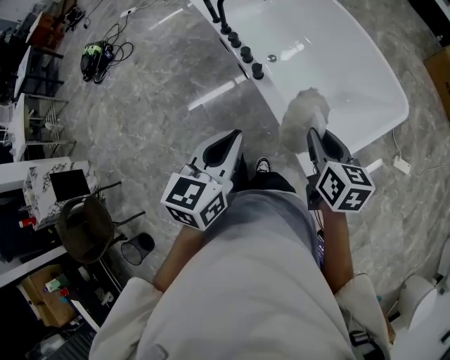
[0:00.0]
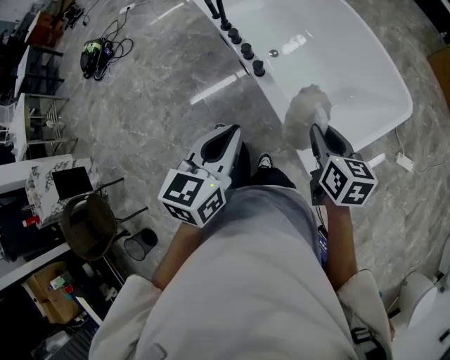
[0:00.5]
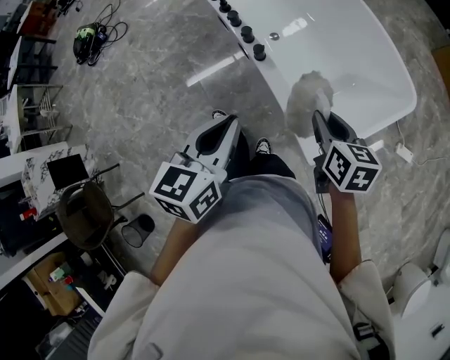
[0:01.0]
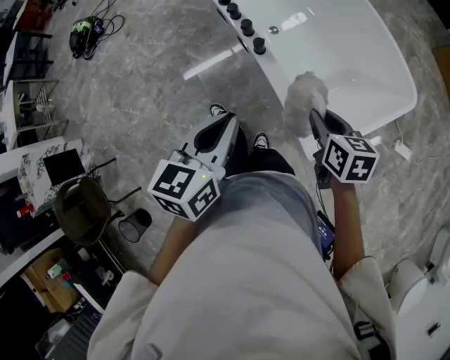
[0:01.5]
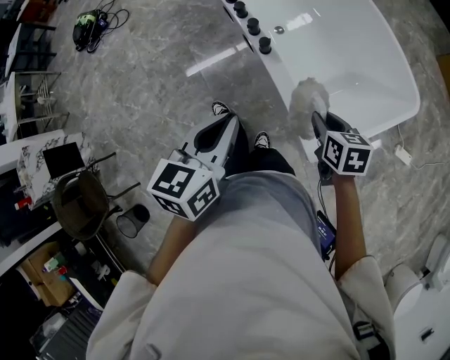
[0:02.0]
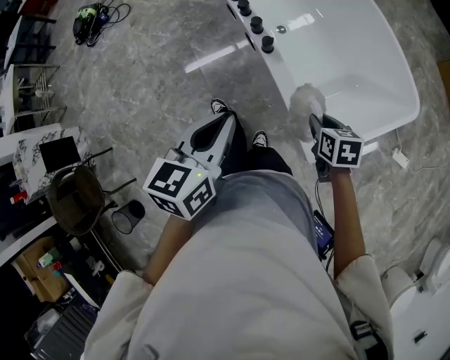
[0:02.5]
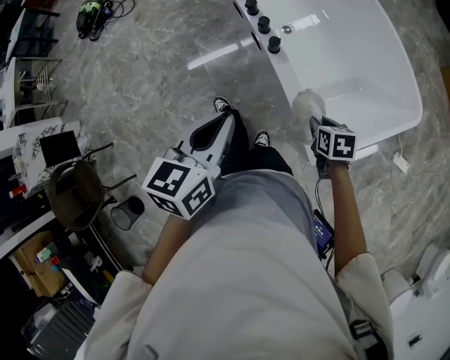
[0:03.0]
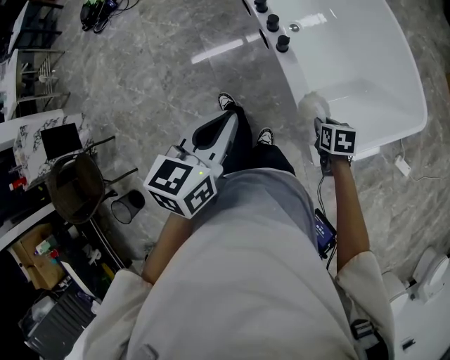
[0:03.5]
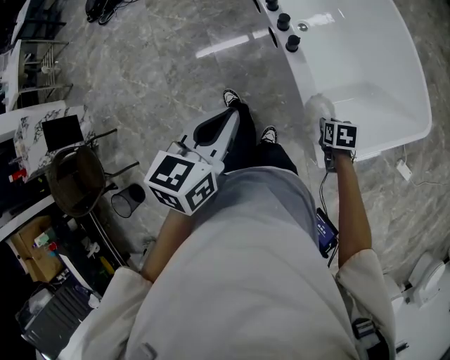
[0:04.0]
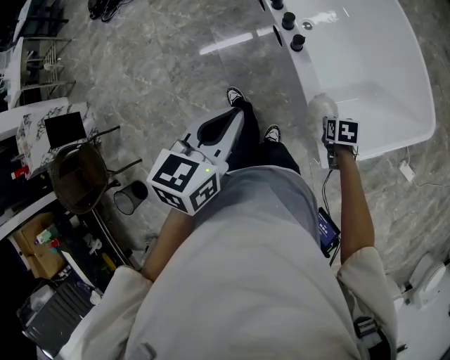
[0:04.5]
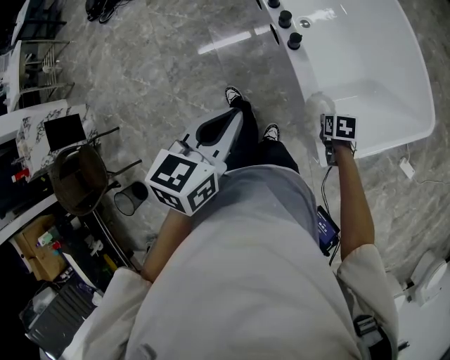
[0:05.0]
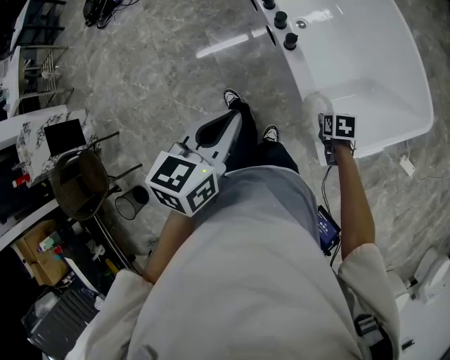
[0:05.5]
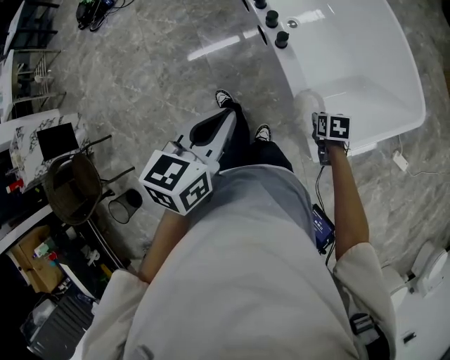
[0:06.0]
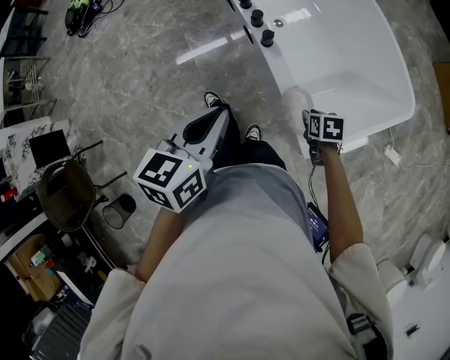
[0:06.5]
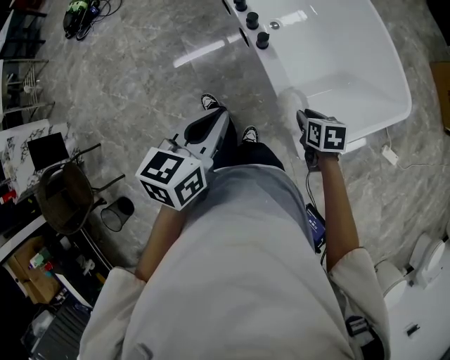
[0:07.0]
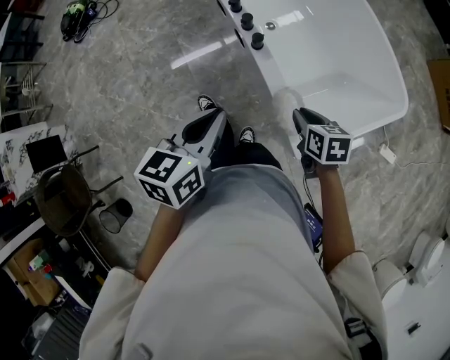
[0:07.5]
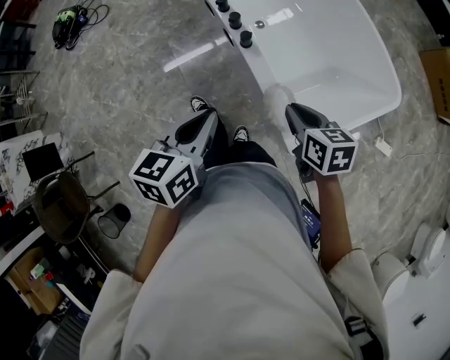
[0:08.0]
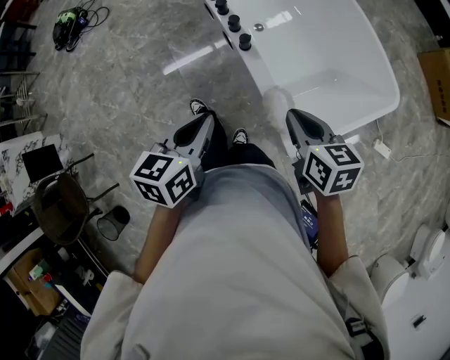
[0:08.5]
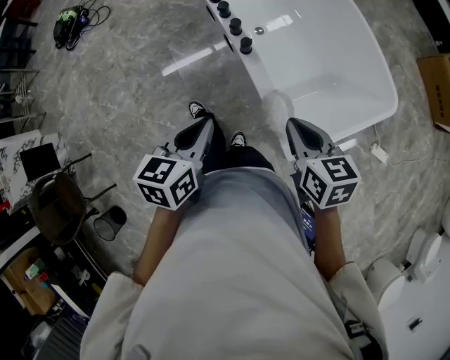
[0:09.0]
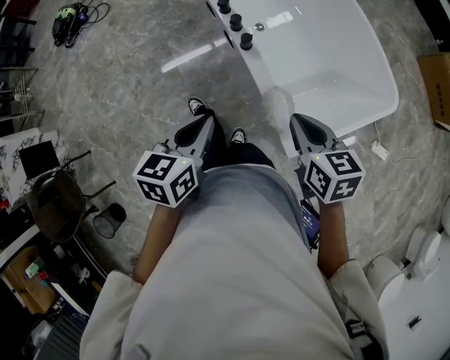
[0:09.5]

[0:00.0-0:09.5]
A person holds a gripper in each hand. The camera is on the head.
0:00.0 to 0:02.0: The right gripper shifts approximately 10 cm downward, and turns by about 20 degrees.
0:02.0 to 0:04.0: The right gripper shifts some 15 cm downward, and swivels roughly 20 degrees, while the left gripper is displaced to the left by roughly 5 cm.
0:04.0 to 0:05.5: There are only small adjustments of the grippers.
0:05.5 to 0:07.5: The right gripper shifts about 15 cm upward, and rotates about 20 degrees.
0:07.5 to 0:09.5: The right gripper travels upward by roughly 10 cm.

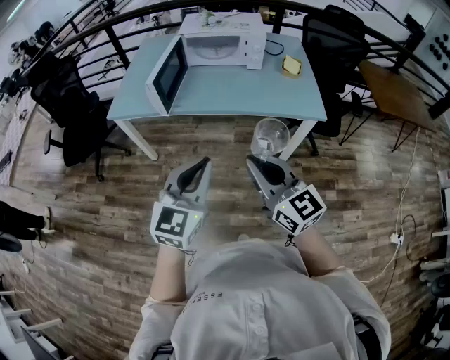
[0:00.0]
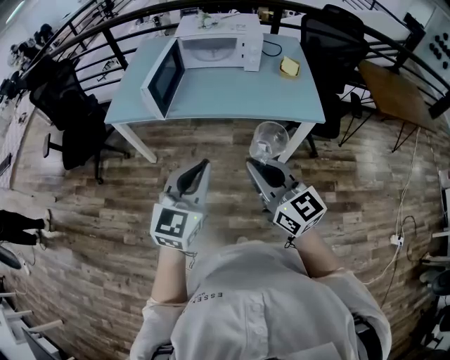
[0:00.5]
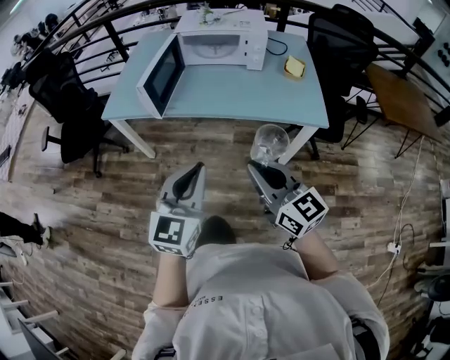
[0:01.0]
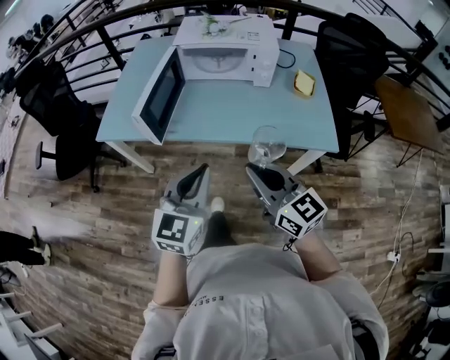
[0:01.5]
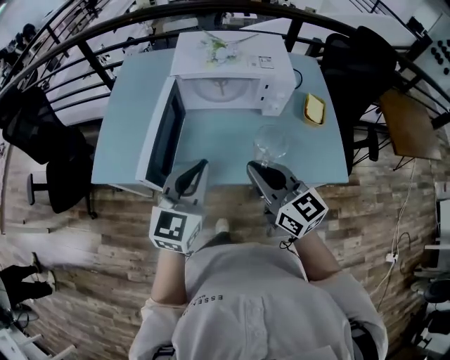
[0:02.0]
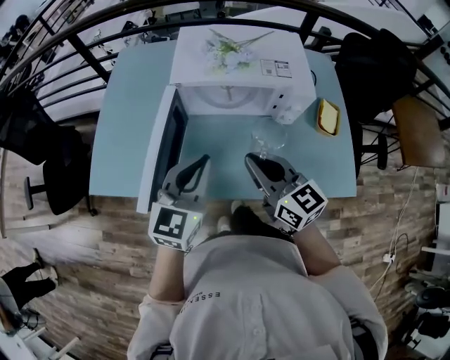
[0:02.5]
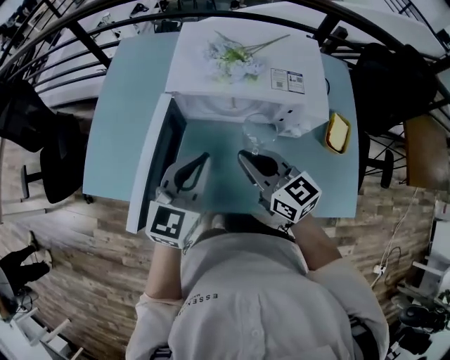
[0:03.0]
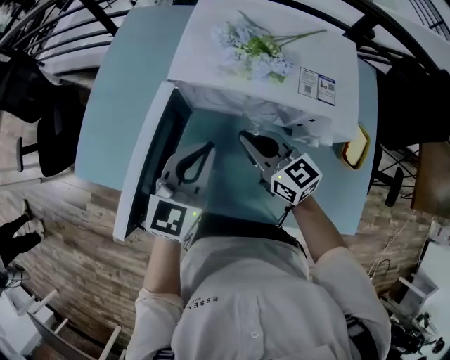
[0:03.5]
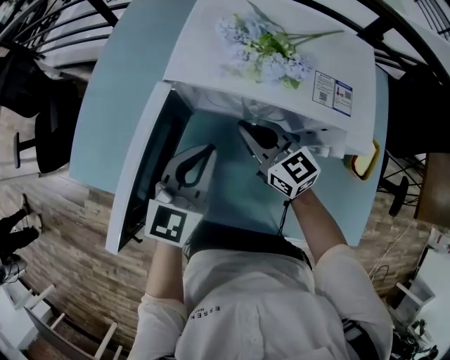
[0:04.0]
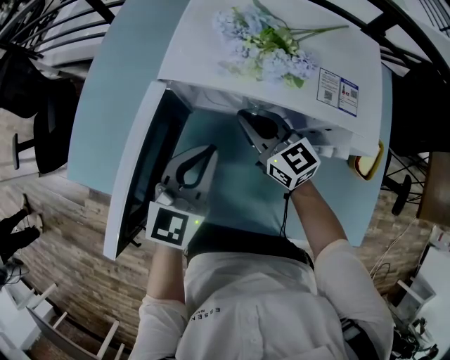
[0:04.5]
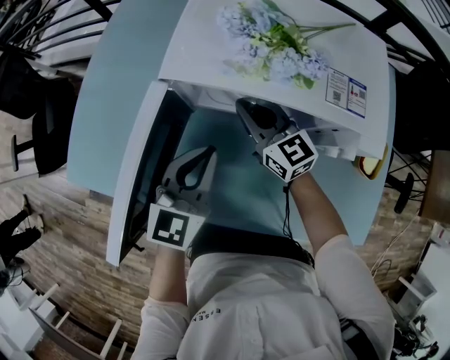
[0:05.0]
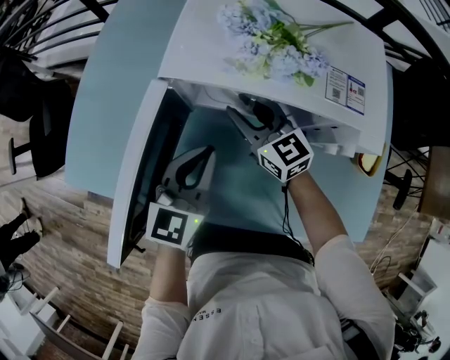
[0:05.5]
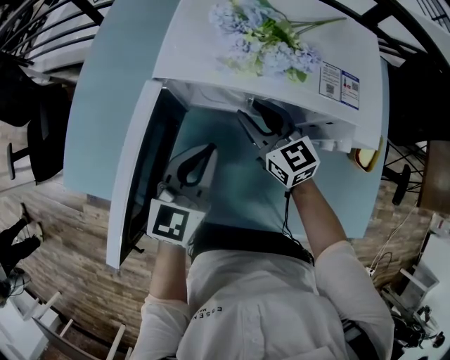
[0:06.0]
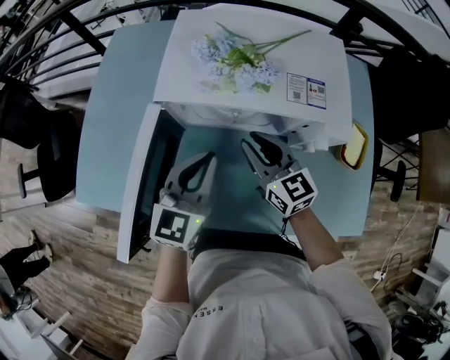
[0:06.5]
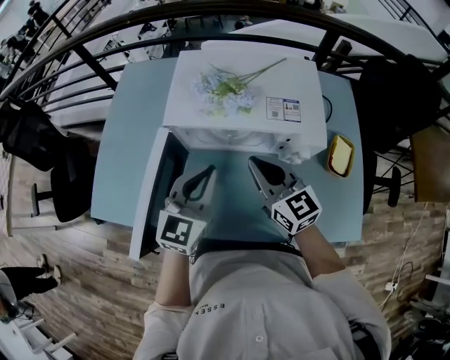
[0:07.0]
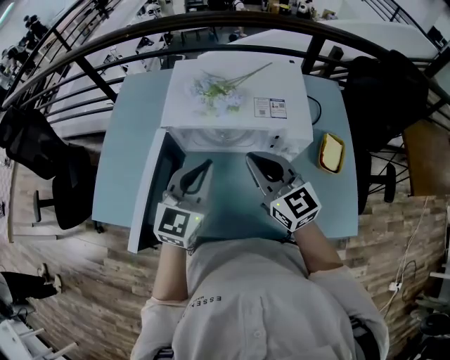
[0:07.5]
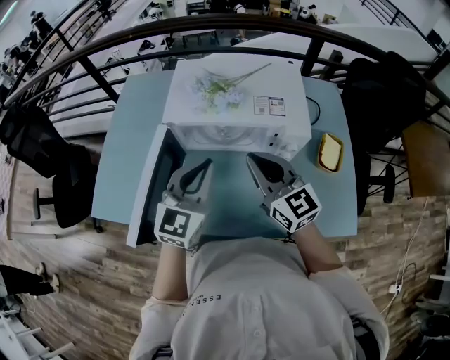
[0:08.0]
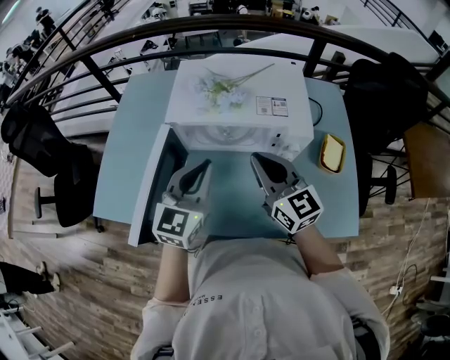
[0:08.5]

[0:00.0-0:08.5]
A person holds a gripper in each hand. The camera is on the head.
0:00.0 to 0:02.0: Both grippers move forward, roughly 40 cm.
0:02.0 to 0:04.0: The grippers both shift forward and downward by some 30 cm.
0:04.0 to 0:06.5: The right gripper goes forward and returns, about 5 cm each way, and opens its fingers.
0:06.5 to 0:08.5: The right gripper travels upward and backward by about 15 cm, and closes. Meanwhile the left gripper moves upward, about 10 cm.

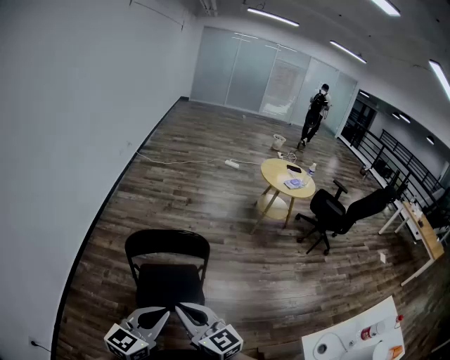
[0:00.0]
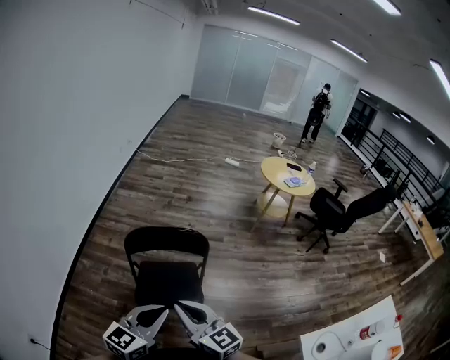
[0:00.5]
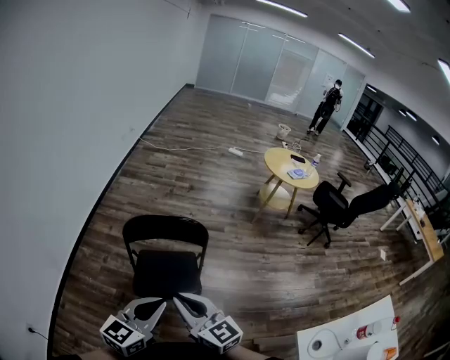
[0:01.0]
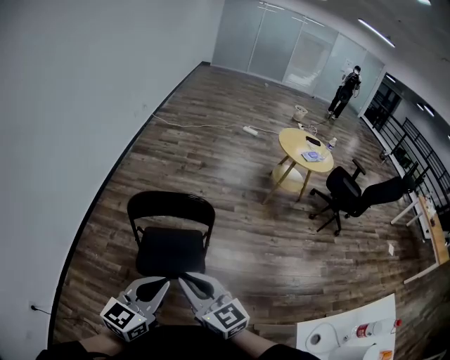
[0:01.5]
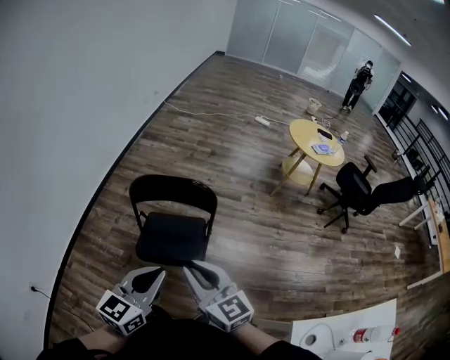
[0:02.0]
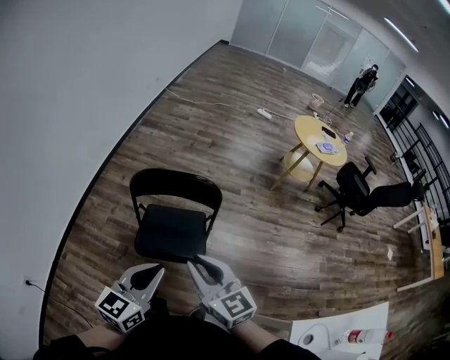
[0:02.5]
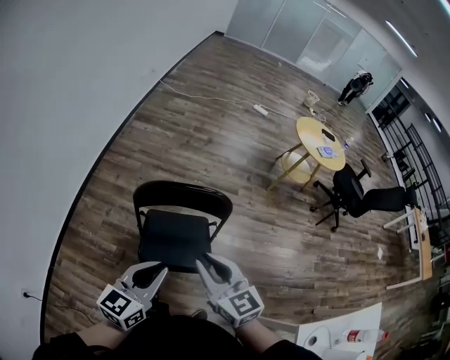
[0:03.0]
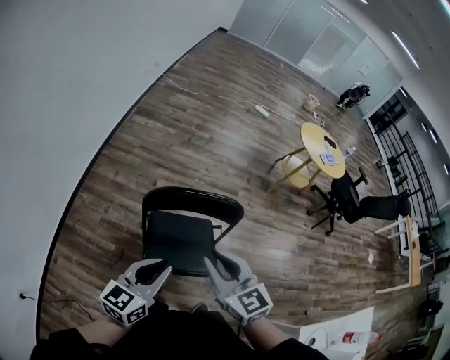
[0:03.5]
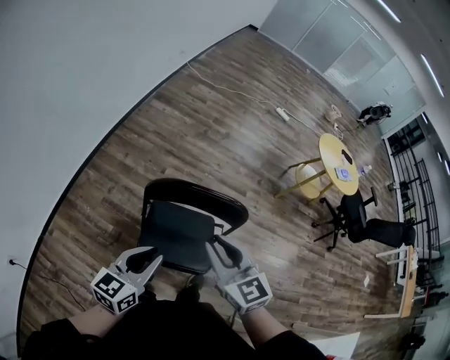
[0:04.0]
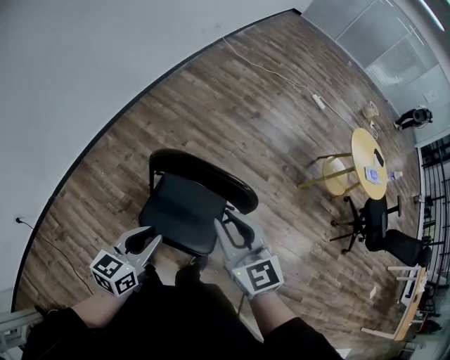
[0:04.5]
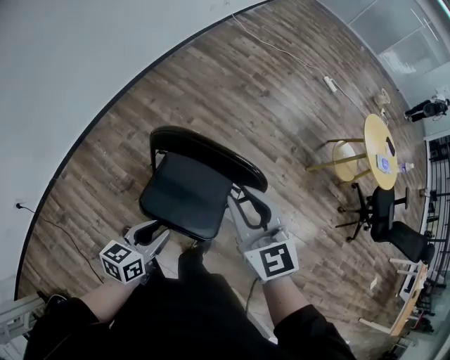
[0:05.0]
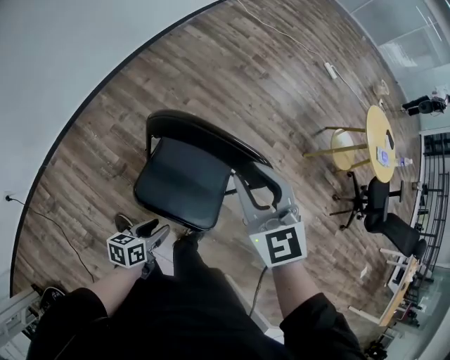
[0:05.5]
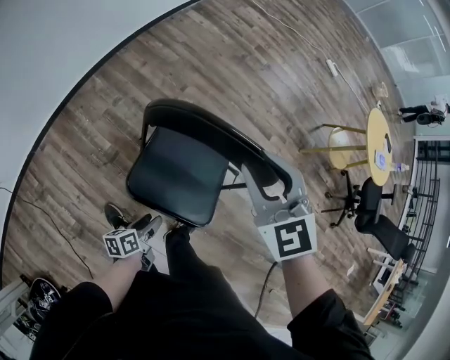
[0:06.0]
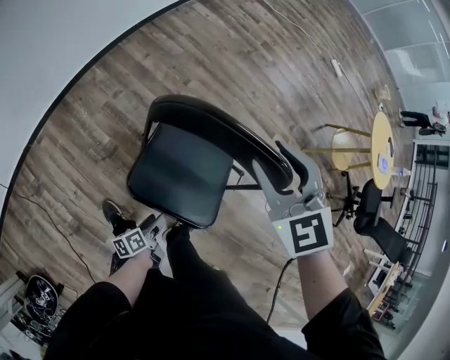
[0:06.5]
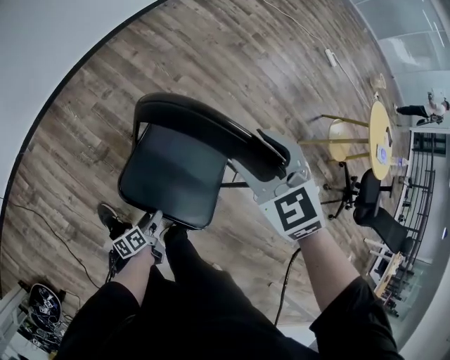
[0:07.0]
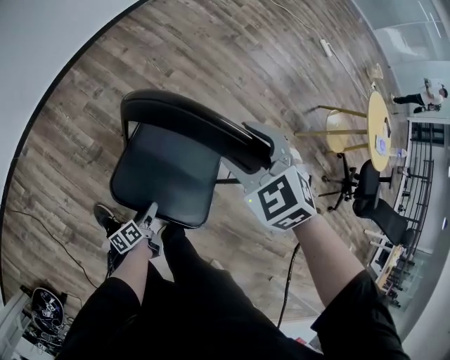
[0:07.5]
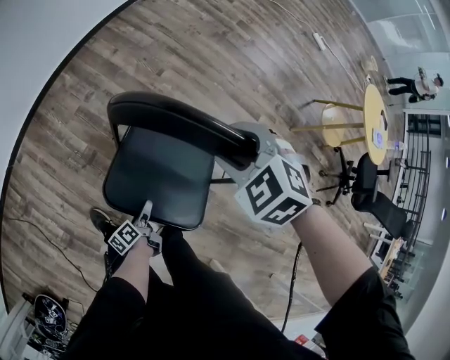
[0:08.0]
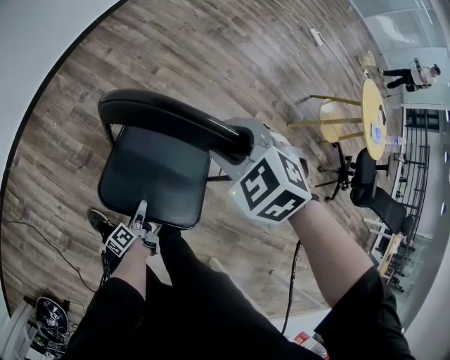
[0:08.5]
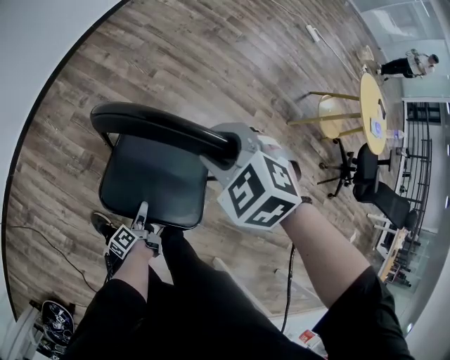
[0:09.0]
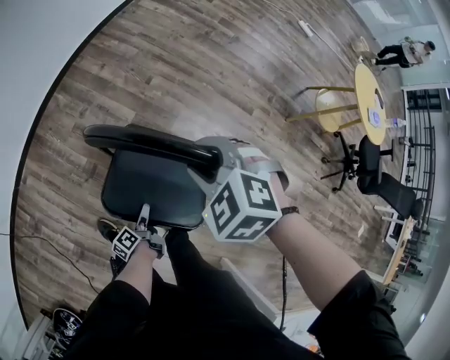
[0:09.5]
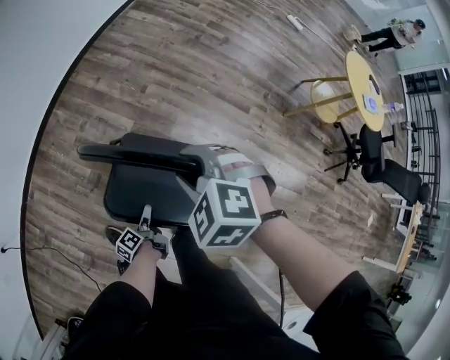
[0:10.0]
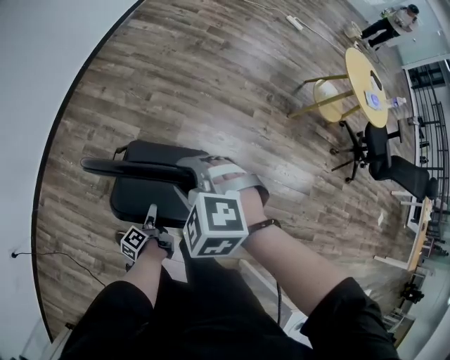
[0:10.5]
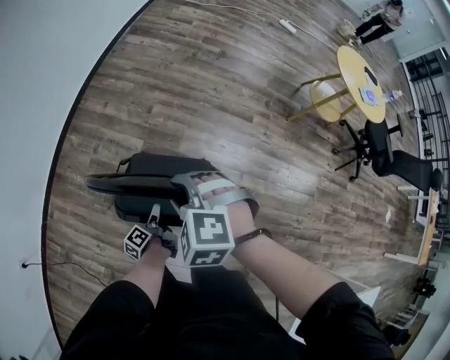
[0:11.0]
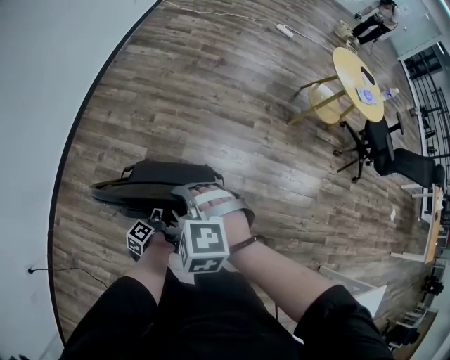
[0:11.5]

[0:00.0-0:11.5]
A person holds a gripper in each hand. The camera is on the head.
0:00.0 to 0:02.0: The right gripper shifts roughly 5 cm to the right.
0:02.0 to 0:04.0: The right gripper travels forward and to the left by some 20 cm, while the left gripper travels forward, to the left and downward by about 20 cm.
0:04.0 to 0:06.0: The right gripper goes roughly 15 cm forward and downward, and swivels about 30 degrees, while the left gripper moves downward, some 35 cm, twists about 50 degrees counterclockwise, seen from behind, and opens its fingers.
0:06.0 to 0:07.5: Both grippers travel together downward, about 10 cm. The right gripper rotates some 30 degrees, and opens up. Meanwhile the left gripper swivels about 20 degrees, and opens its fingers.
0:07.5 to 0:09.5: The right gripper closes its fingers.
0:09.5 to 0:11.5: The left gripper travels upward and forward by roughly 15 cm, while the right gripper goes some 5 cm backward.
